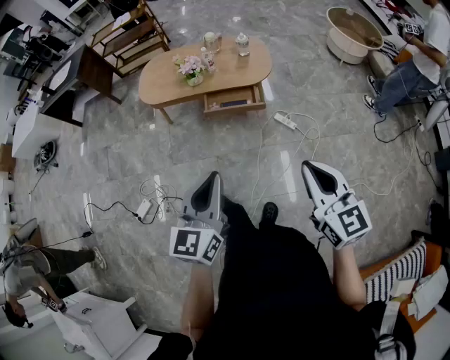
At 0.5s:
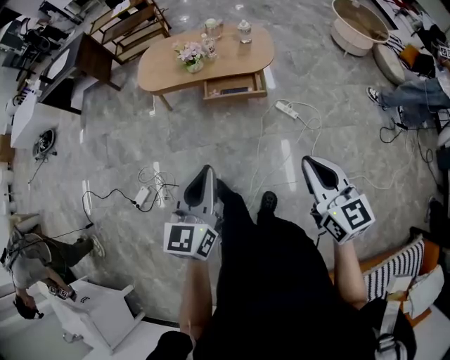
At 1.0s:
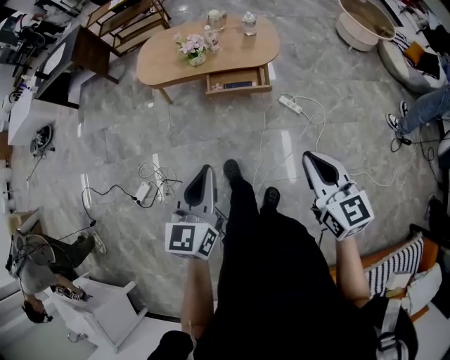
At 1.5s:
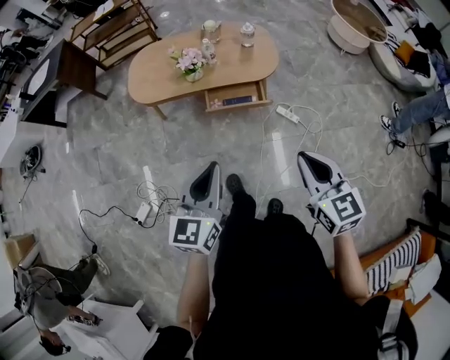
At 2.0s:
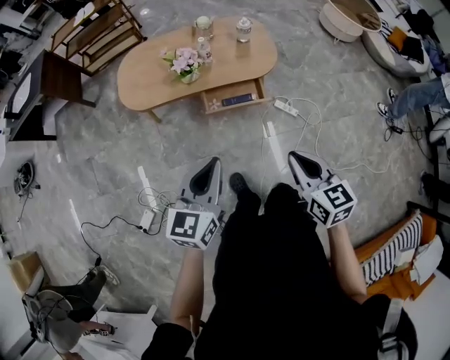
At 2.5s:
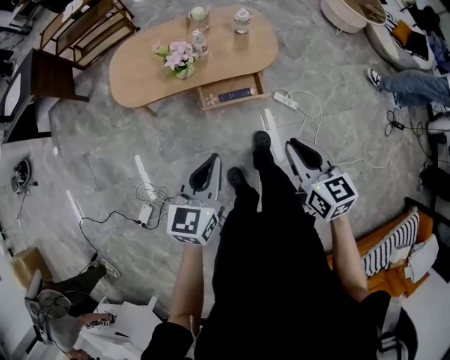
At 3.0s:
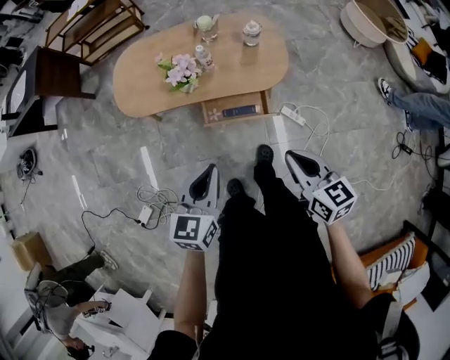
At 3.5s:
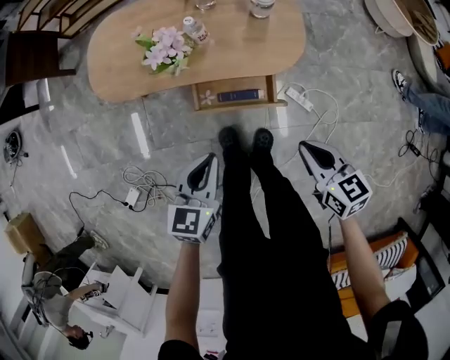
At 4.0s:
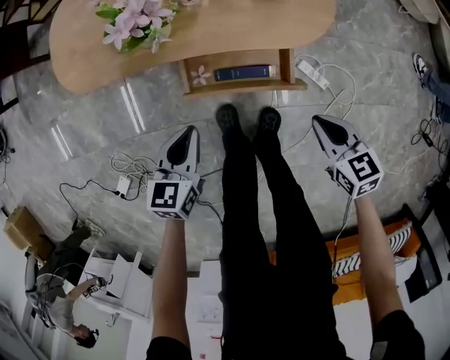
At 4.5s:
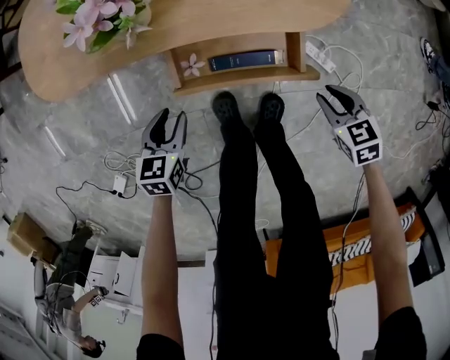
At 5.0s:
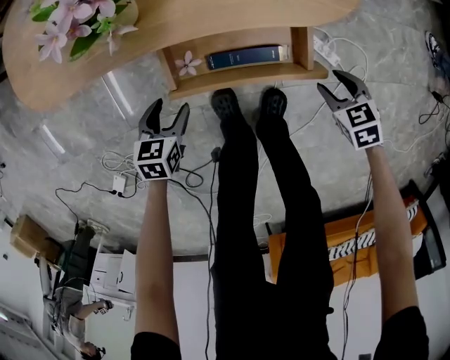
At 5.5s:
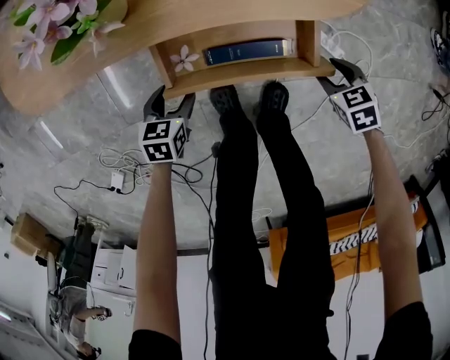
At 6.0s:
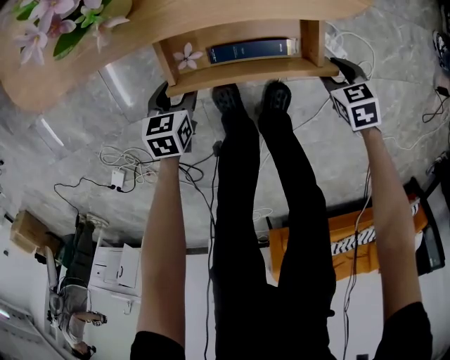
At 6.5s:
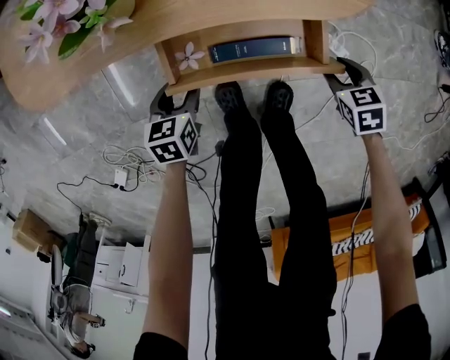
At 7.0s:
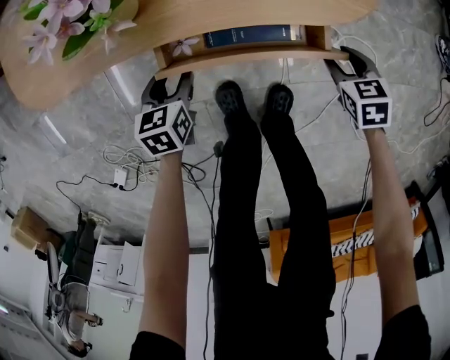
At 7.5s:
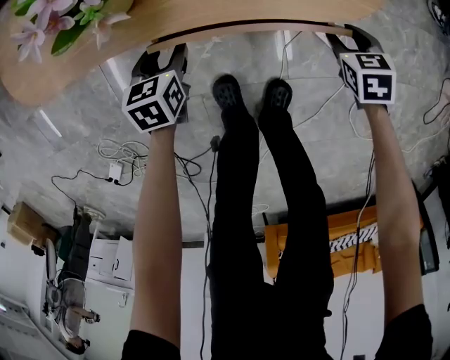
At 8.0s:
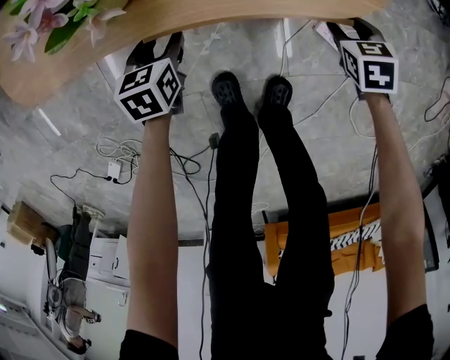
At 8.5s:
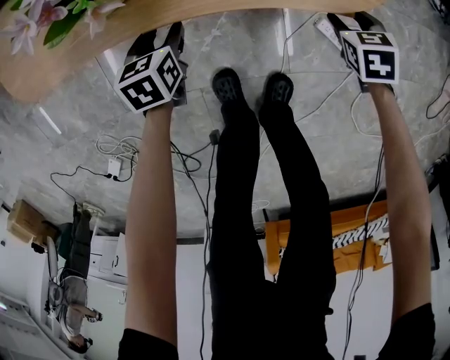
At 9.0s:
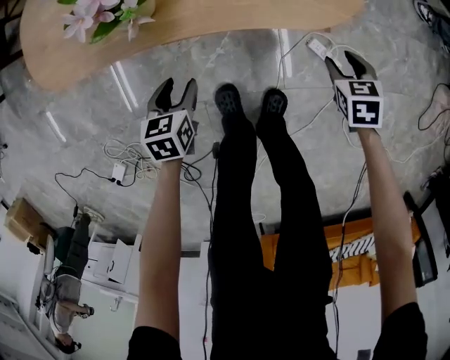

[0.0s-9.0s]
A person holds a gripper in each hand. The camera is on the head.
0.0s to 2.0s: The left gripper moves forward and to the left, some 25 cm. Meanwhile the right gripper goes roughly 30 cm forward, to the left and downward.
2.0s to 4.5s: Both grippers travel together downward and forward, about 60 cm. The left gripper points its fingers about 30 degrees further downward, and opens up; the right gripper tilts its fingers roughly 30 degrees downward.
4.5s to 7.0s: The left gripper shifts approximately 10 cm downward and forward; the right gripper shifts some 10 cm forward and downward, and opens up.
7.0s to 9.0s: Both grippers move upward, roughly 5 cm. The left gripper reaches about 5 cm forward, then returns.

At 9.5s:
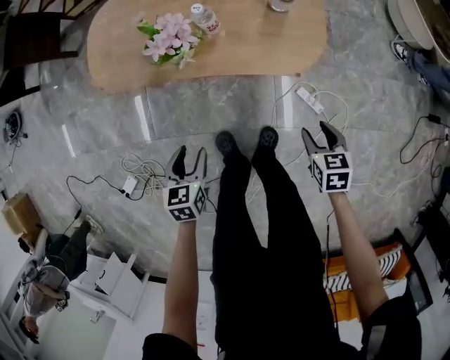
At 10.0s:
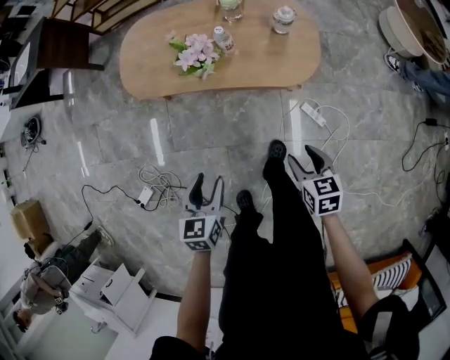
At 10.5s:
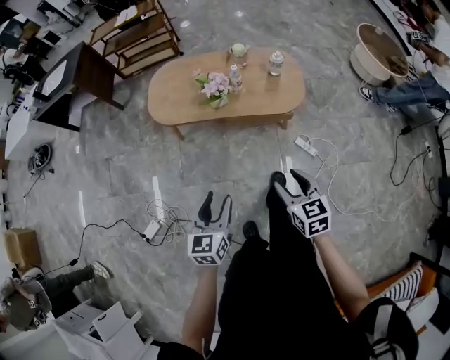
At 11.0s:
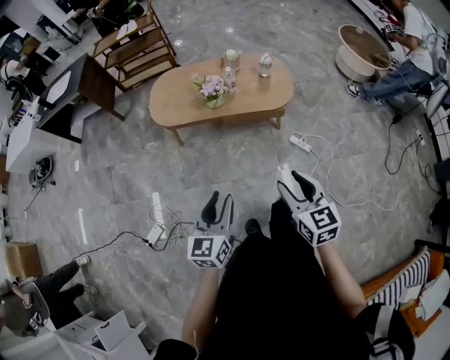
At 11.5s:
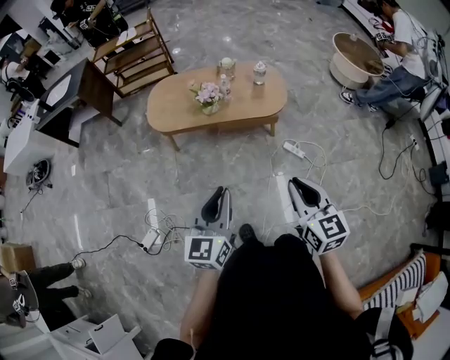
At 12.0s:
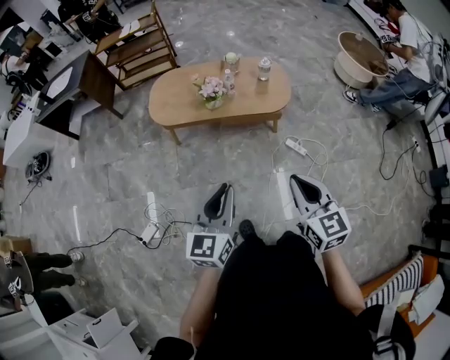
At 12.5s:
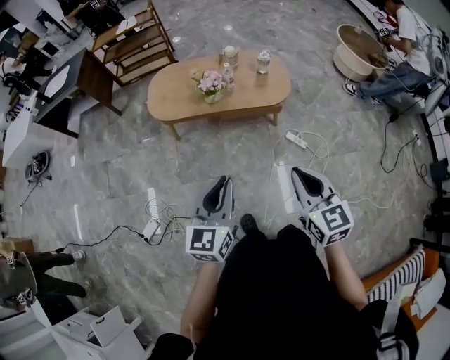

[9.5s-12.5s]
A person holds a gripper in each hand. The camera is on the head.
9.5s to 11.0s: The left gripper is displaced upward and backward by about 50 cm, and points its fingers roughly 40 degrees further upward. The right gripper shifts approximately 50 cm upward, backward and to the left, and angles its fingers upward, by approximately 30 degrees.
11.0s to 12.5s: The two grippers go approximately 5 cm upward. The right gripper closes its fingers, while the left gripper closes its fingers.

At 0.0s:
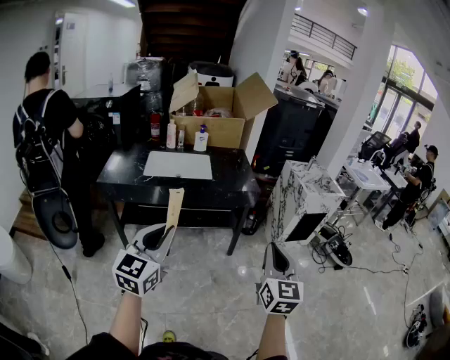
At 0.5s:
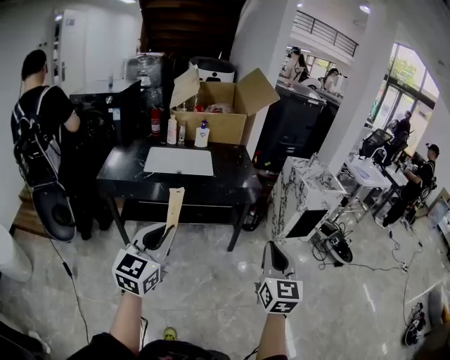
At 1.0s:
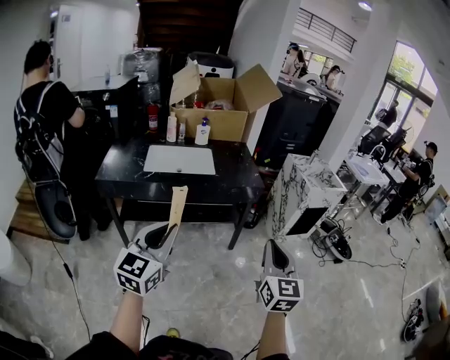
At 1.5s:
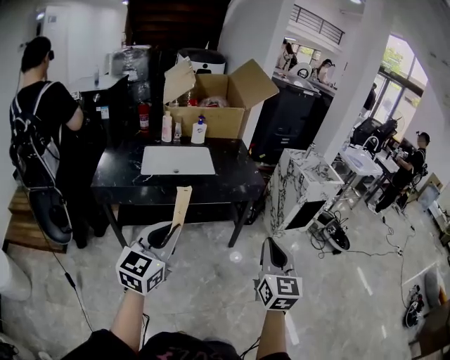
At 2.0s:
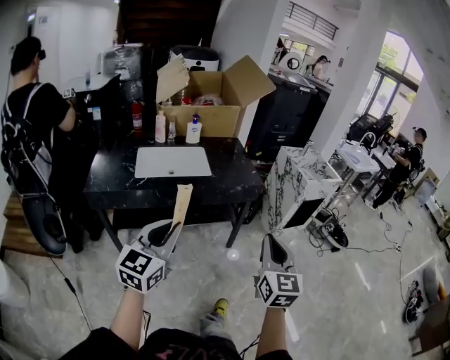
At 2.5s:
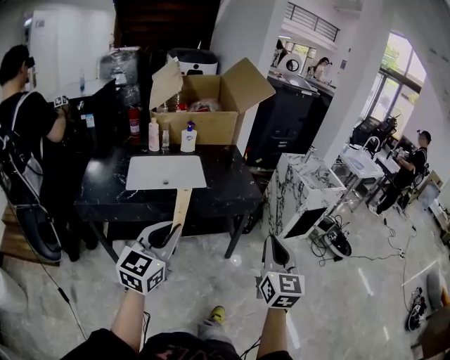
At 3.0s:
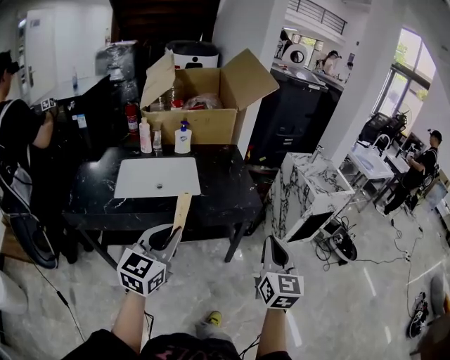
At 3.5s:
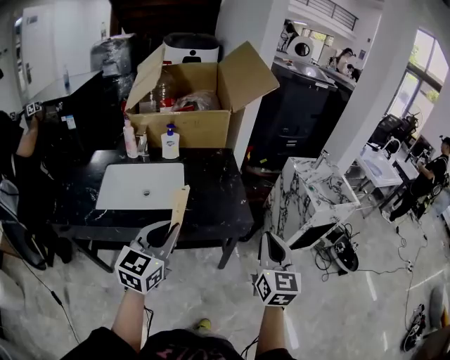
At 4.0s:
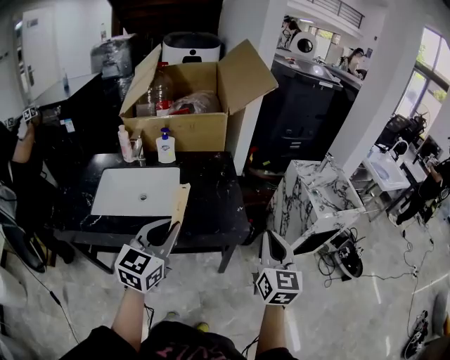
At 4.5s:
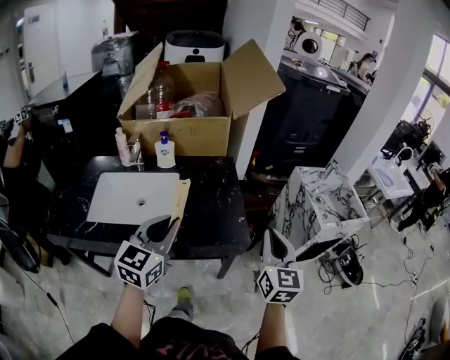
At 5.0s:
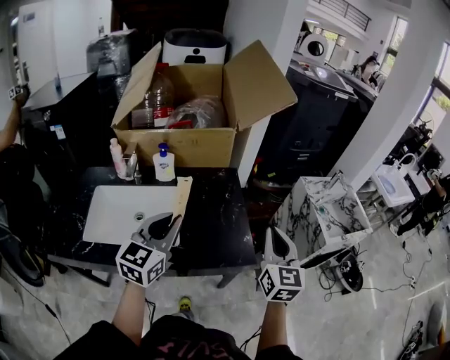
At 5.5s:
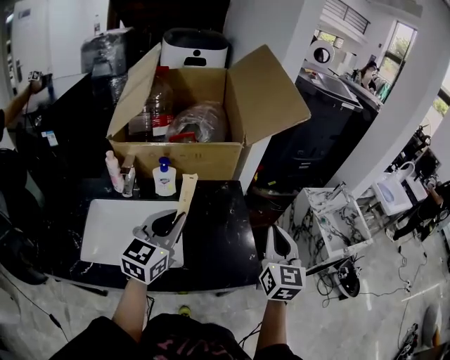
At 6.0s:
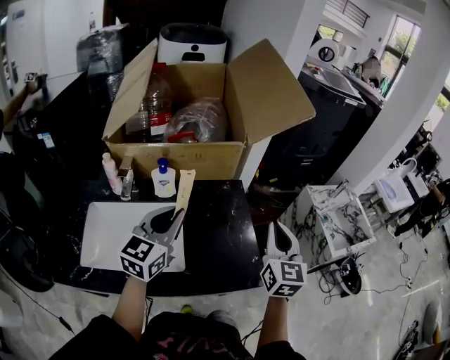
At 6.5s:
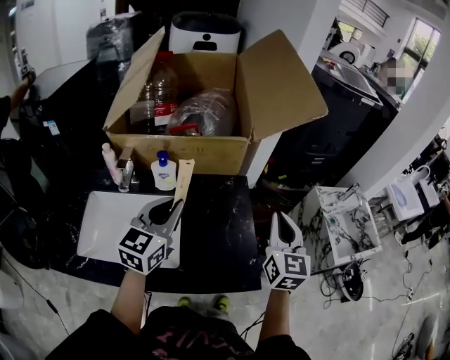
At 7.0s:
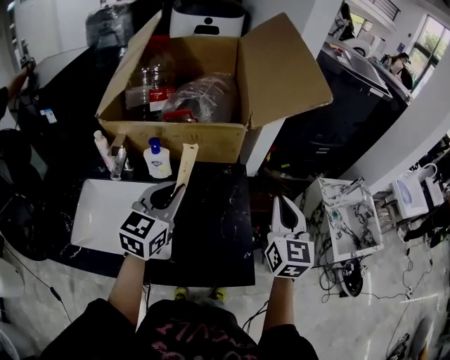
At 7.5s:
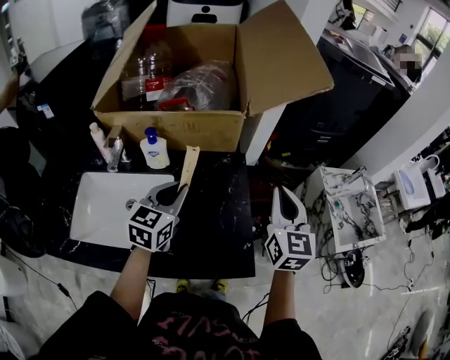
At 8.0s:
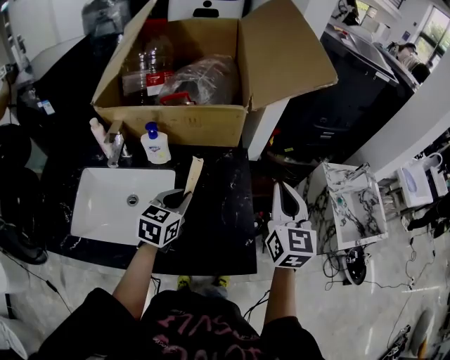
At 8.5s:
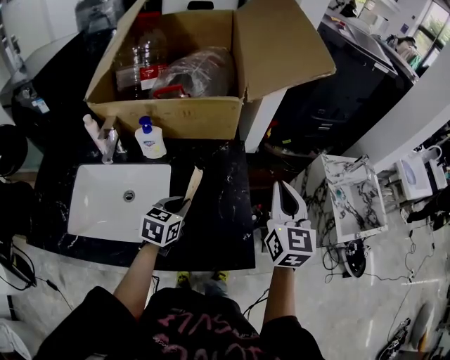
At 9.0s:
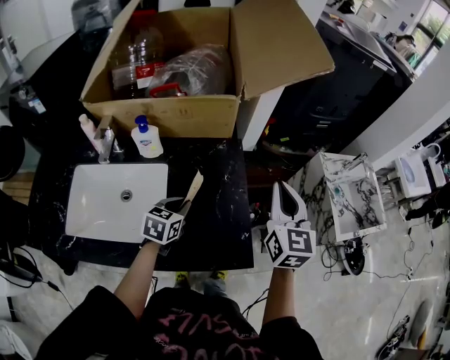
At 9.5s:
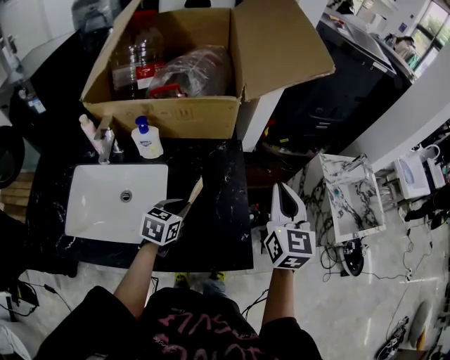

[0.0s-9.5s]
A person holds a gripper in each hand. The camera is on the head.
0.0s to 2.0s: The left gripper moves forward and to the left, some 10 cm. The right gripper heads to the left and forward, covering approximately 10 cm.
2.0s to 4.0s: Both grippers are carried forward, approximately 40 cm.
4.0s to 5.5s: The two grippers go roughly 25 cm forward and to the left.
5.5s to 7.5s: The left gripper shifts about 15 cm forward and downward, while the right gripper goes some 10 cm forward.
7.5s to 9.5s: The left gripper goes some 15 cm downward, and rotates about 20 degrees.

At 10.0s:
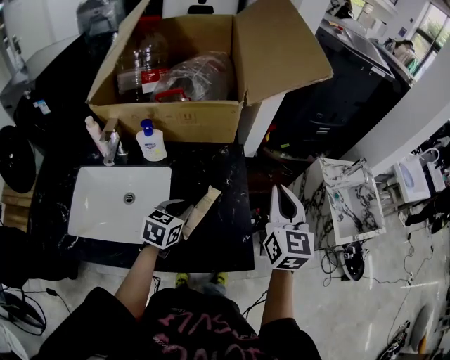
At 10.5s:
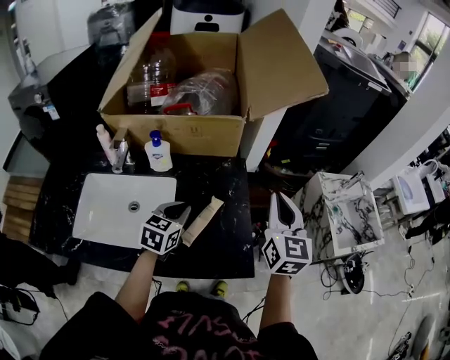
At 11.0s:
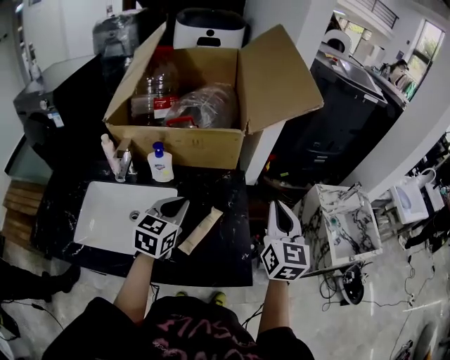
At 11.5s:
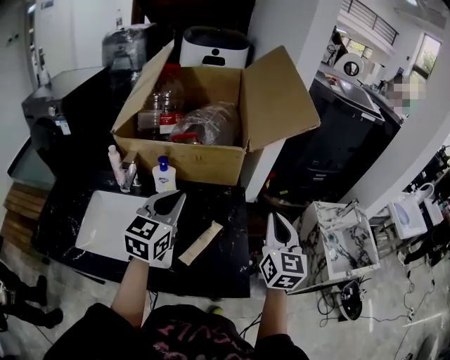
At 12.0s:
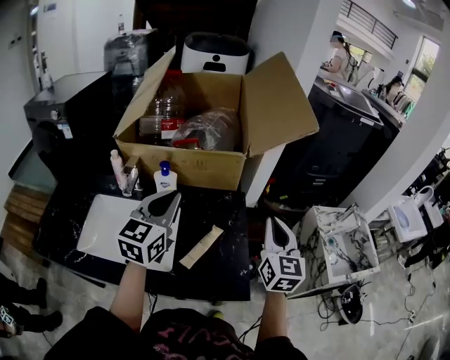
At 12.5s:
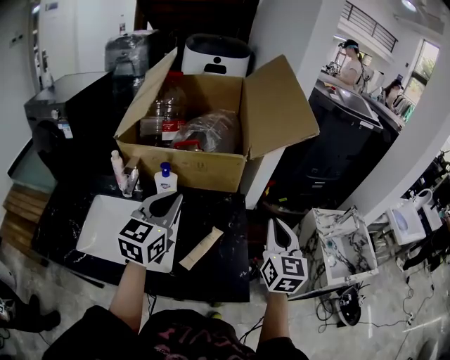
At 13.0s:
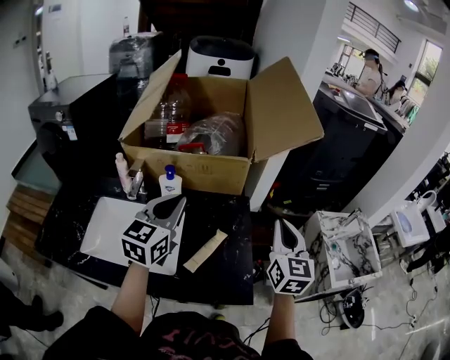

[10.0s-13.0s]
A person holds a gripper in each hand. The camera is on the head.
10.0s to 11.5s: The left gripper shifts some 25 cm upward, and turns by approximately 30 degrees.
11.5s to 13.0s: There are only small adjustments of the grippers.

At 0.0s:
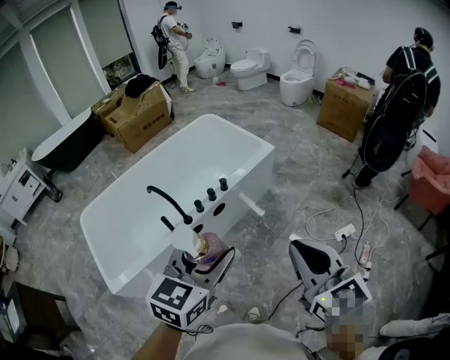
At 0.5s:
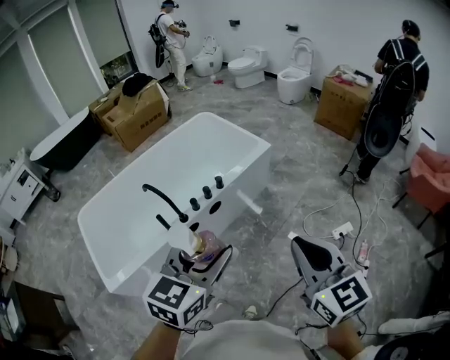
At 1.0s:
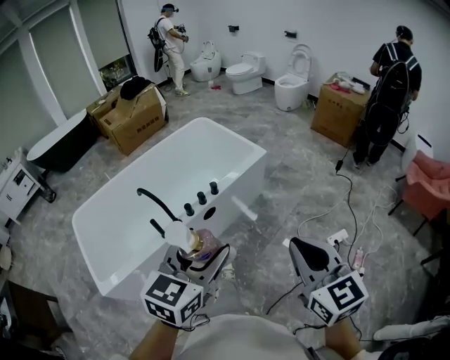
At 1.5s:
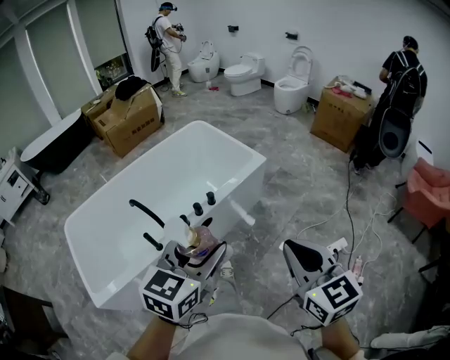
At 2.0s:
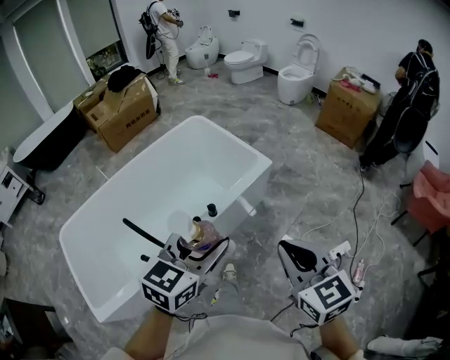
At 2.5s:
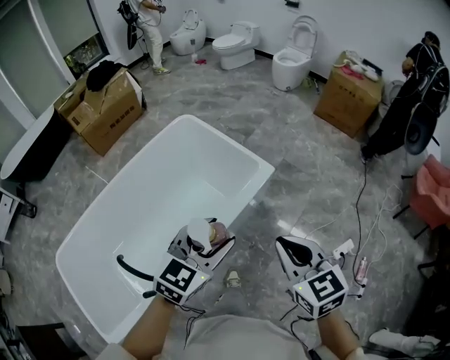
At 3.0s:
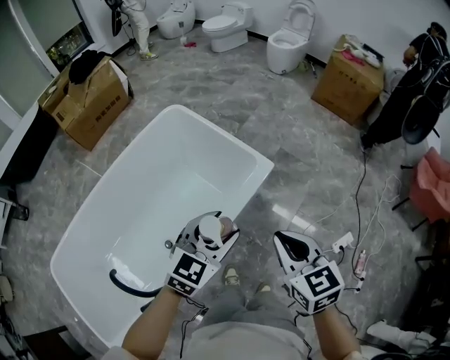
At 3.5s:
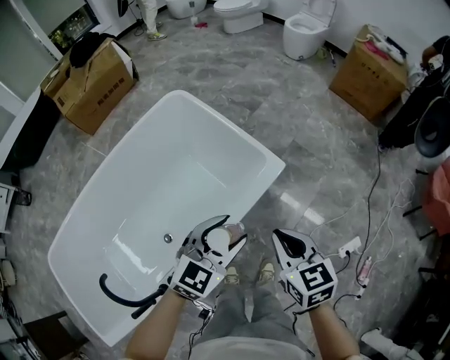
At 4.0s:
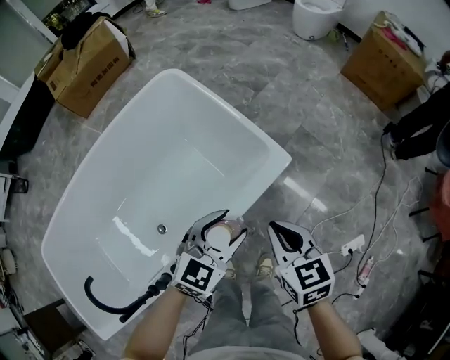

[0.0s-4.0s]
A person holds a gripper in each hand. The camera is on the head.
0.0s to 2.0s: Both grippers move forward, approximately 25 cm.
2.0s to 4.0s: The two grippers go about 50 cm forward and downward. The right gripper swivels roughly 20 degrees.
